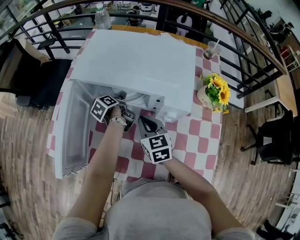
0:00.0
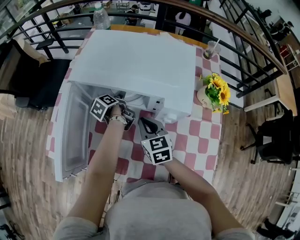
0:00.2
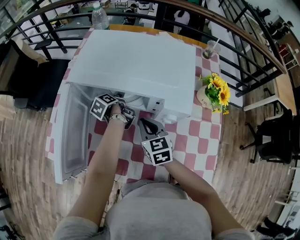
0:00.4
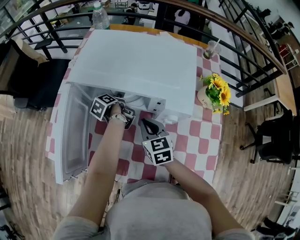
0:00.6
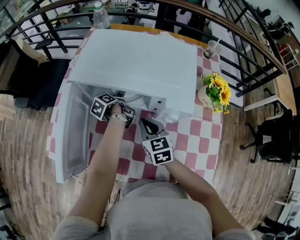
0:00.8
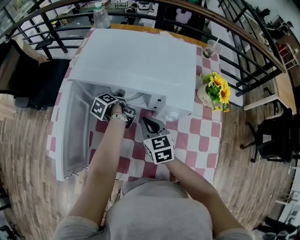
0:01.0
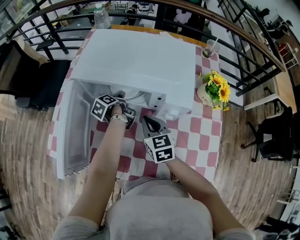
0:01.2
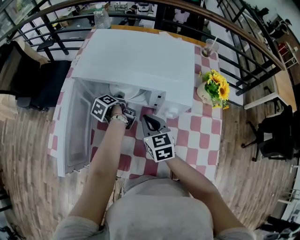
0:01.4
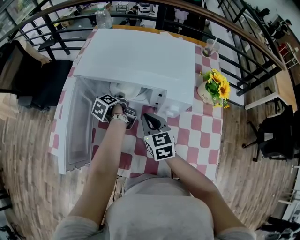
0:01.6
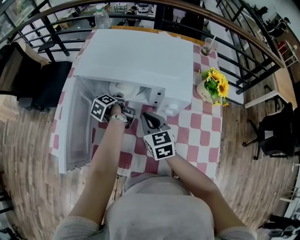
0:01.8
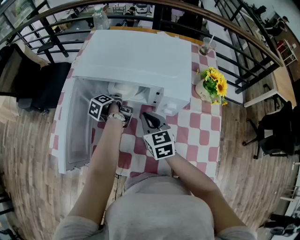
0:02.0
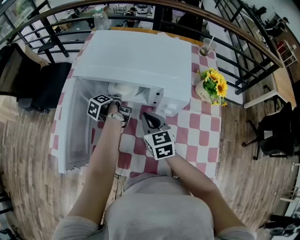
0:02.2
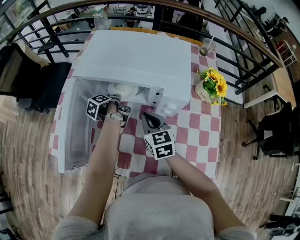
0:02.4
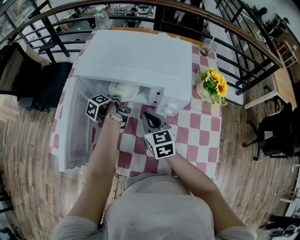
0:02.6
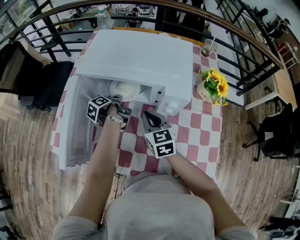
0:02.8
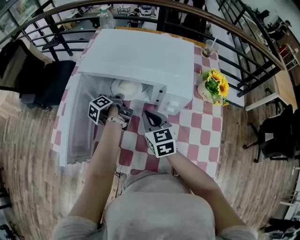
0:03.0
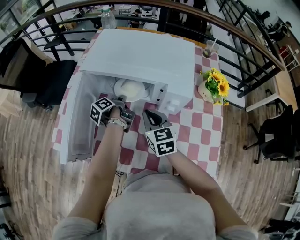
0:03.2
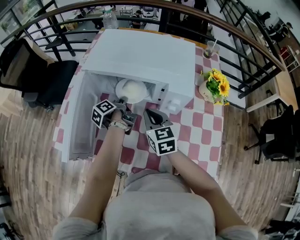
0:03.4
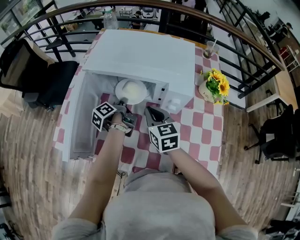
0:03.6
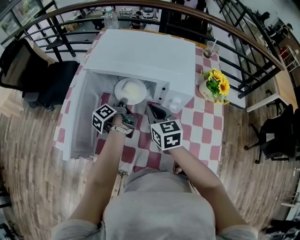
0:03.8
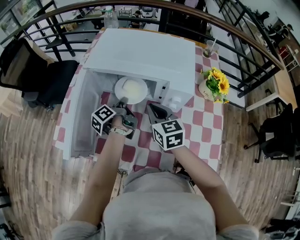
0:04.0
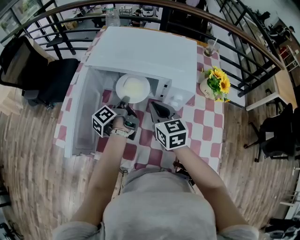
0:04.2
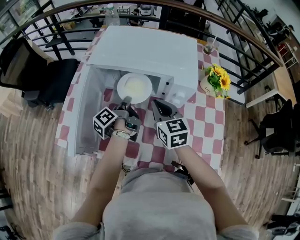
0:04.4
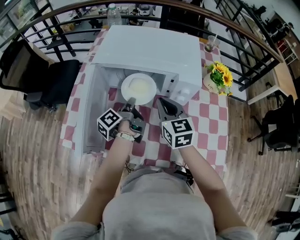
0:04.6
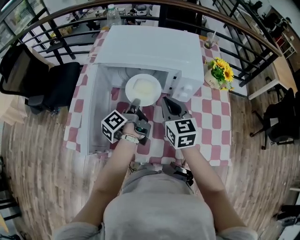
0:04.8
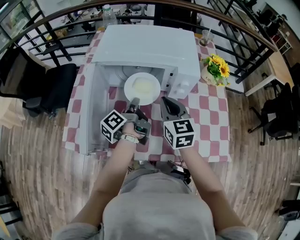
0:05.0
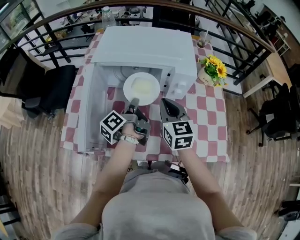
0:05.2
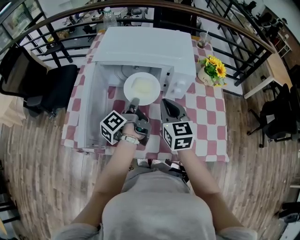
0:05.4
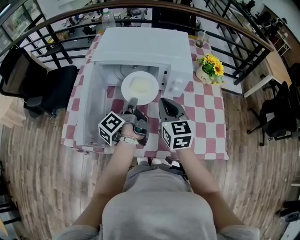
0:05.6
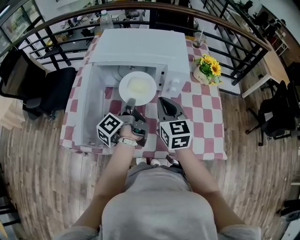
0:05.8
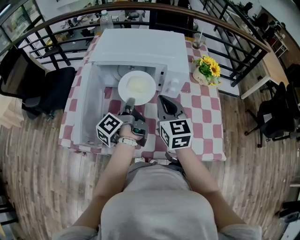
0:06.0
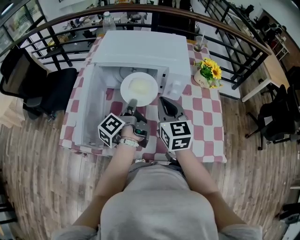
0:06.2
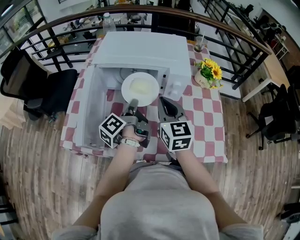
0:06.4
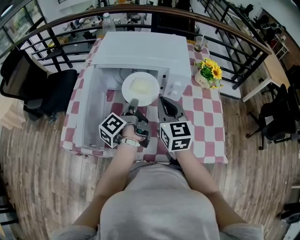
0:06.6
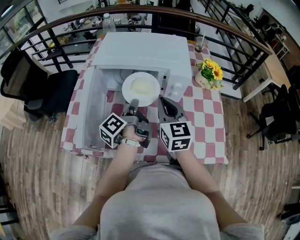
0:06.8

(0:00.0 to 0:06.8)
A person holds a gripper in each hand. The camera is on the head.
0:00.0 - 0:01.4: The grippers make only small movements.
0:01.4 - 0:02.8: The left gripper closes.
0:02.8 - 0:04.0: The left gripper shifts by some 5 cm.
0:04.0 - 0:05.4: The left gripper travels backward and upward by roughly 10 cm, while the right gripper is displaced backward by some 5 cm.
0:05.4 - 0:06.8: The grippers stay close to where they were, moving slightly.

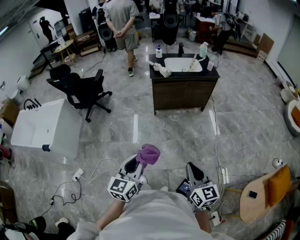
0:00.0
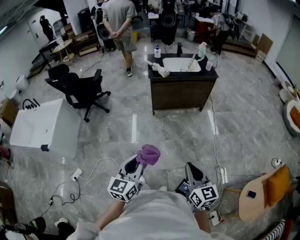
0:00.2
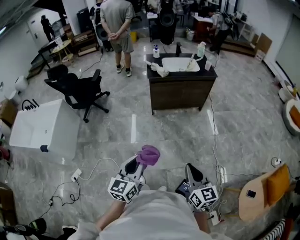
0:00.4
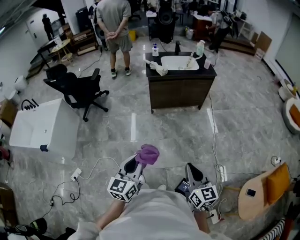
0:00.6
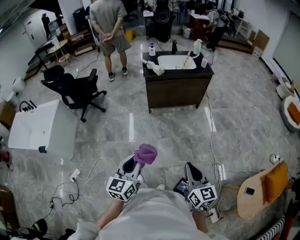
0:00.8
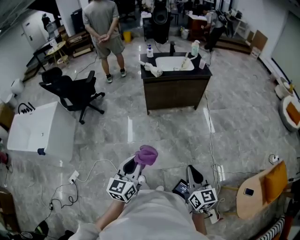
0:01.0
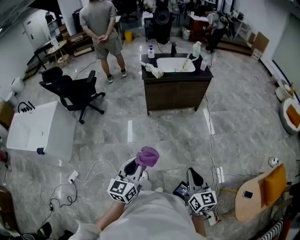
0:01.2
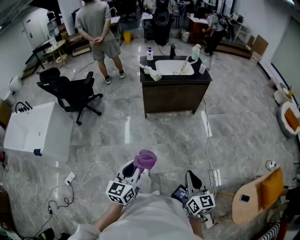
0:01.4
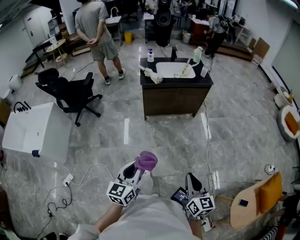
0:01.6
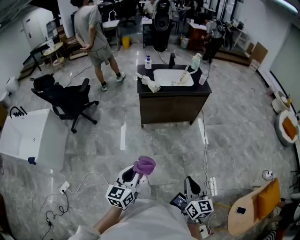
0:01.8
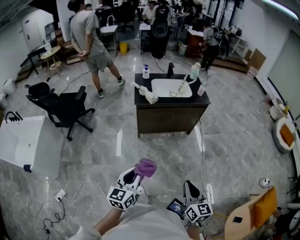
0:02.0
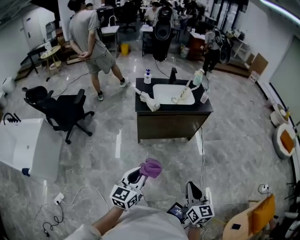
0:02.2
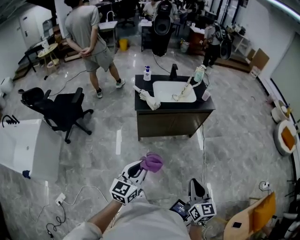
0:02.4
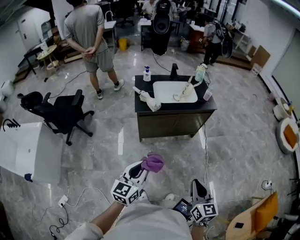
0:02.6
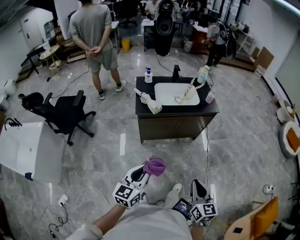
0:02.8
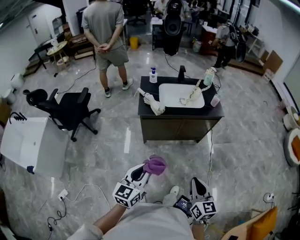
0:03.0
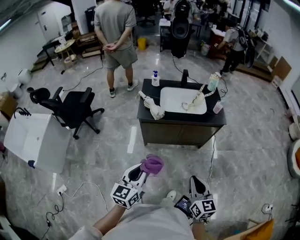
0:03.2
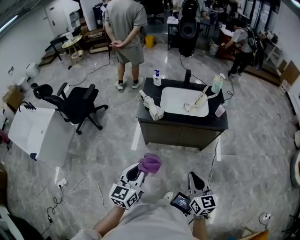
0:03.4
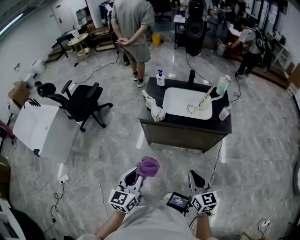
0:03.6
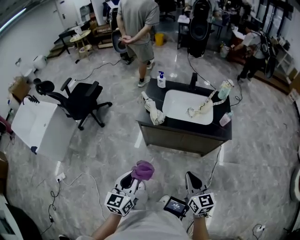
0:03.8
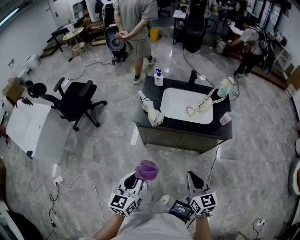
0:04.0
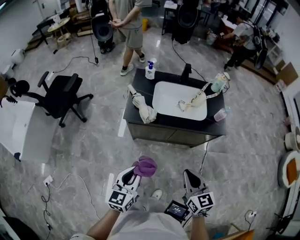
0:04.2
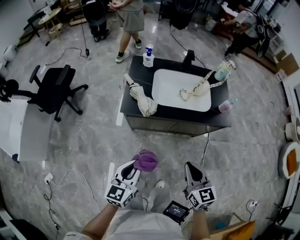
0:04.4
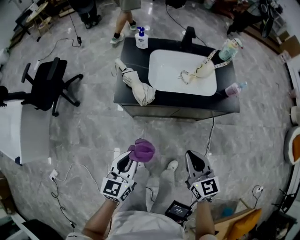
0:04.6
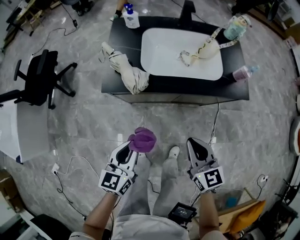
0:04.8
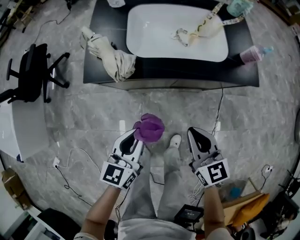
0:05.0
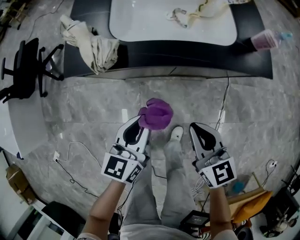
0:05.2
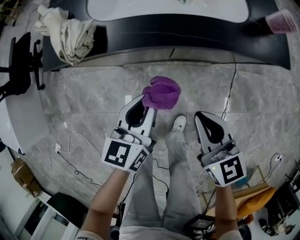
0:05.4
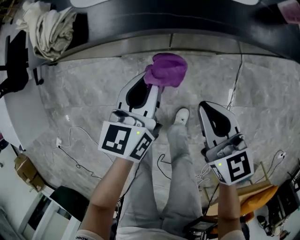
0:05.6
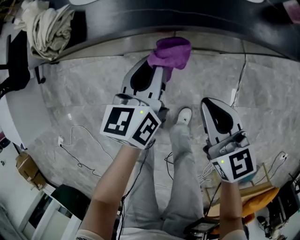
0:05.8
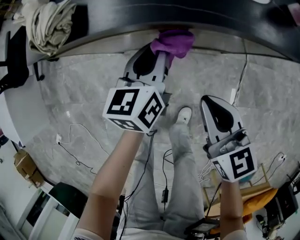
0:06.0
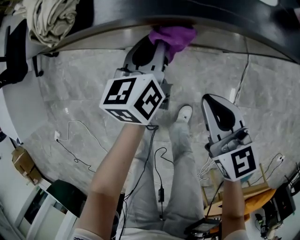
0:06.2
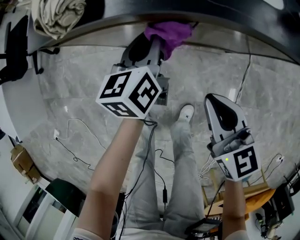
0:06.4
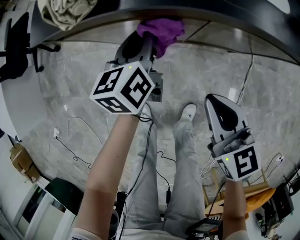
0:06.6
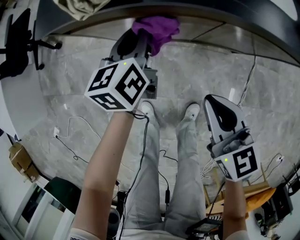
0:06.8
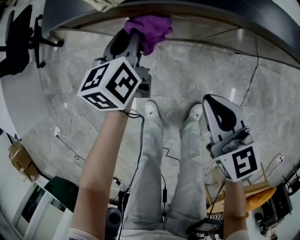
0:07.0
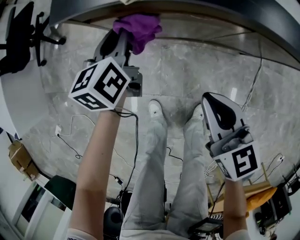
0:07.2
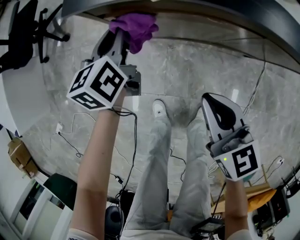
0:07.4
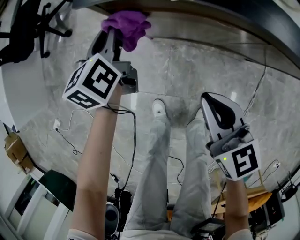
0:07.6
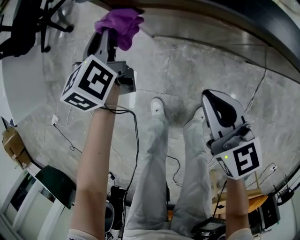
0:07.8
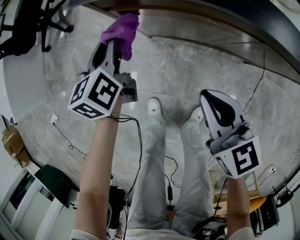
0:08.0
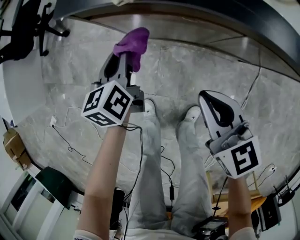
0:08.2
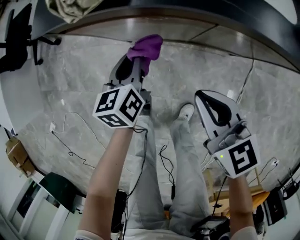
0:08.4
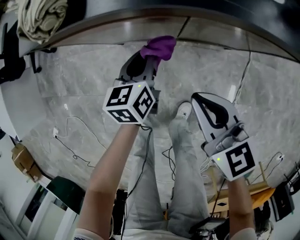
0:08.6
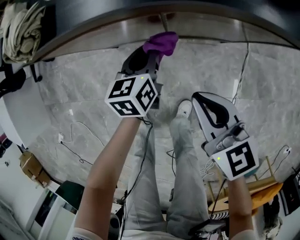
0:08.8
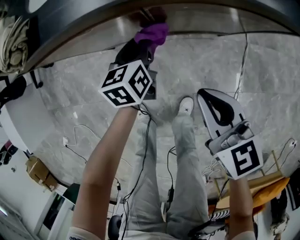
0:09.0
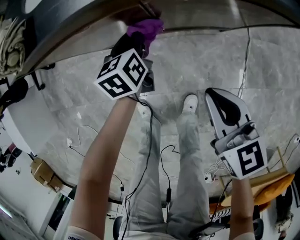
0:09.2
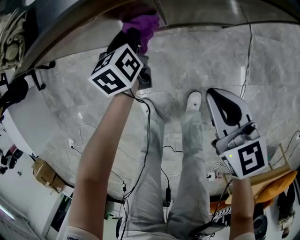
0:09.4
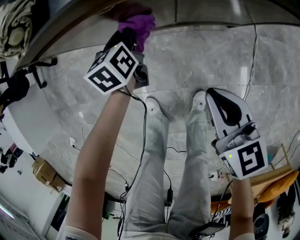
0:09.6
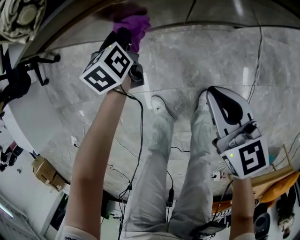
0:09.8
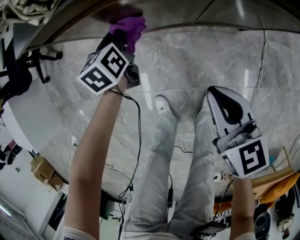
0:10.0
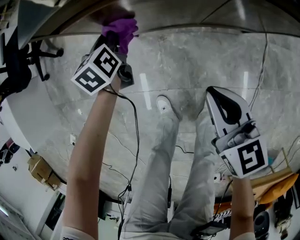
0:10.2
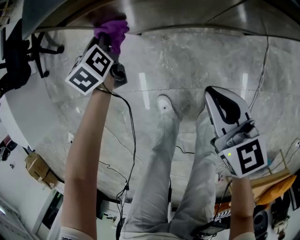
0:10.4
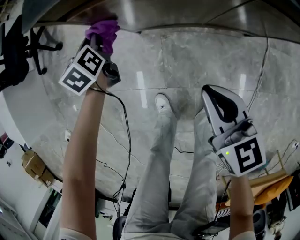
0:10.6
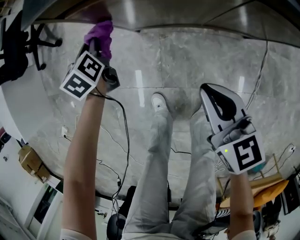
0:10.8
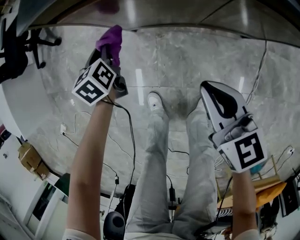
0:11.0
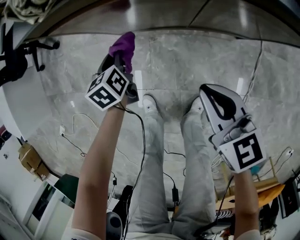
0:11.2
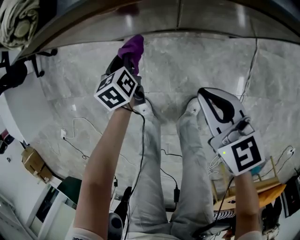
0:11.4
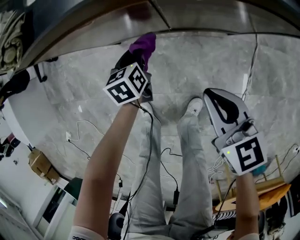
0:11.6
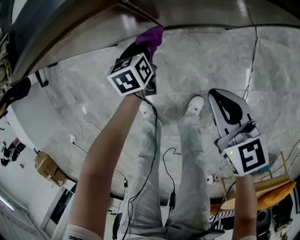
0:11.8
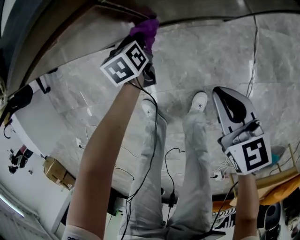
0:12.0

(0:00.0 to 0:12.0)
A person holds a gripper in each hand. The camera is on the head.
0:00.0 - 0:01.6: The left gripper is displaced forward by about 5 cm. Meanwhile the right gripper moves to the right and forward, some 5 cm.
0:01.6 - 0:03.0: The grippers both shift forward by about 35 cm.
0:03.0 - 0:04.4: The right gripper heads forward, covering about 25 cm. The left gripper moves forward and downward, some 20 cm.
0:04.4 - 0:06.0: The left gripper goes roughly 50 cm downward, forward and to the right. The right gripper shifts roughly 35 cm downward.
0:06.0 - 0:07.6: The left gripper is displaced to the left by some 30 cm, and rotates about 20 degrees; the right gripper shifts roughly 20 cm to the left.
0:07.6 - 0:09.0: The left gripper moves to the right and backward, approximately 35 cm, and changes its angle by about 20 degrees. Meanwhile the right gripper shifts approximately 20 cm to the right.
0:09.0 - 0:10.4: The right gripper heads to the left, covering approximately 20 cm. Meanwhile the left gripper goes about 30 cm to the left.
0:10.4 - 0:12.0: The left gripper travels to the right, downward and backward by roughly 35 cm. The right gripper travels to the right and backward by approximately 25 cm.

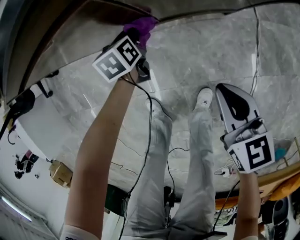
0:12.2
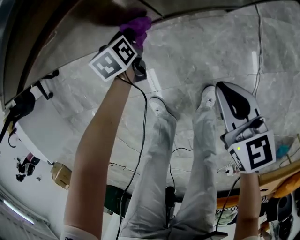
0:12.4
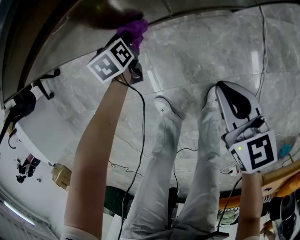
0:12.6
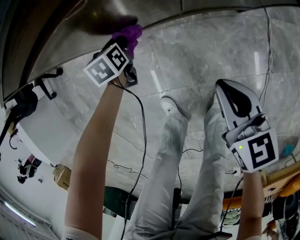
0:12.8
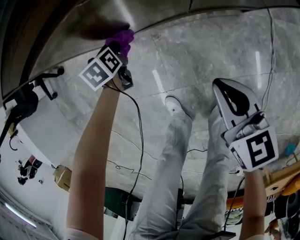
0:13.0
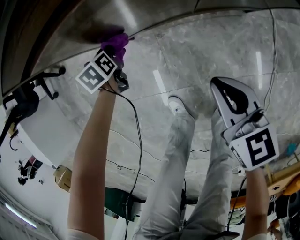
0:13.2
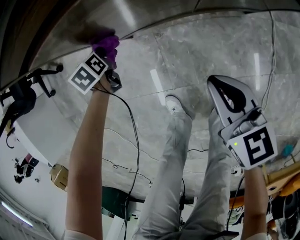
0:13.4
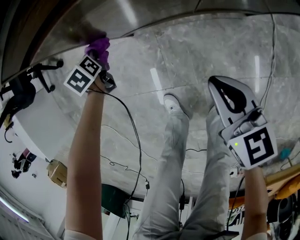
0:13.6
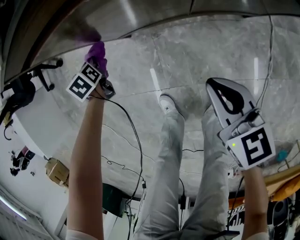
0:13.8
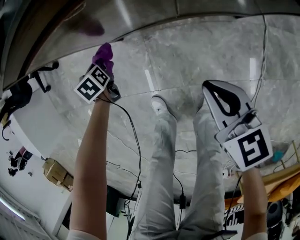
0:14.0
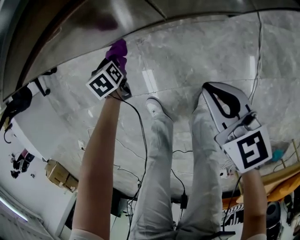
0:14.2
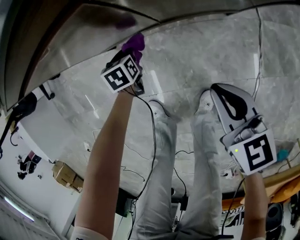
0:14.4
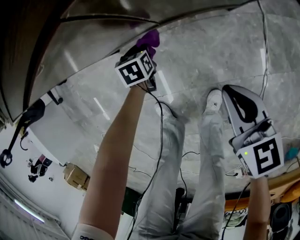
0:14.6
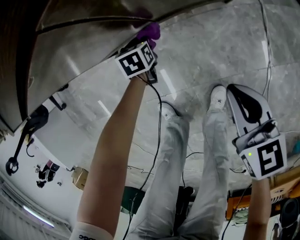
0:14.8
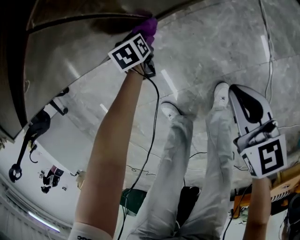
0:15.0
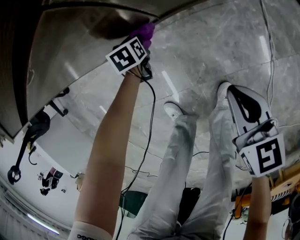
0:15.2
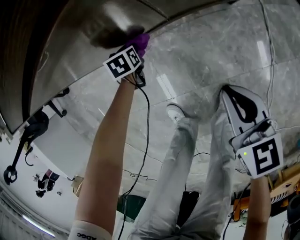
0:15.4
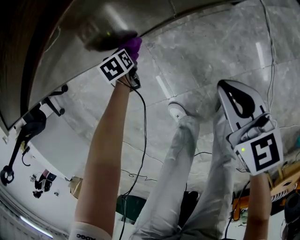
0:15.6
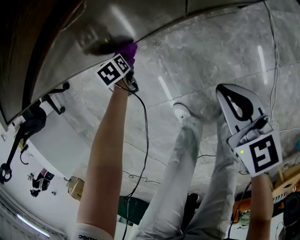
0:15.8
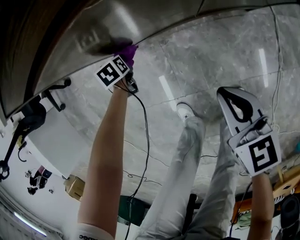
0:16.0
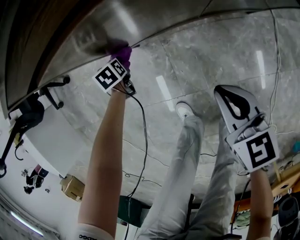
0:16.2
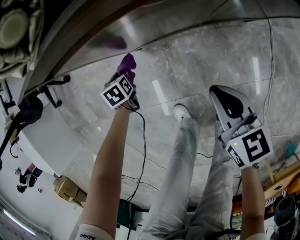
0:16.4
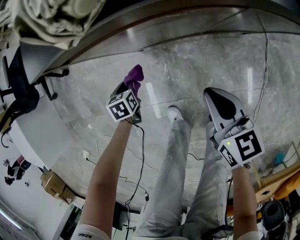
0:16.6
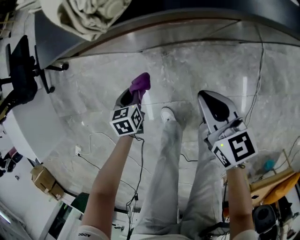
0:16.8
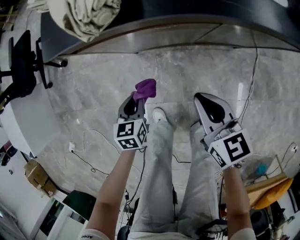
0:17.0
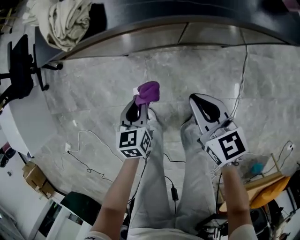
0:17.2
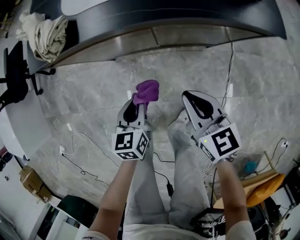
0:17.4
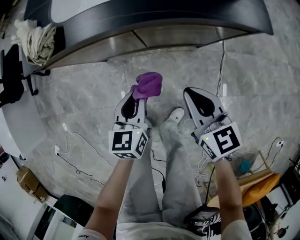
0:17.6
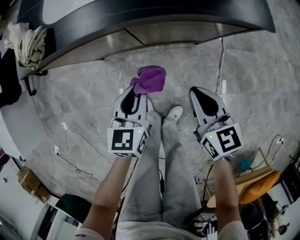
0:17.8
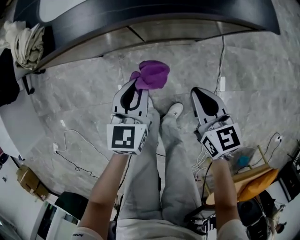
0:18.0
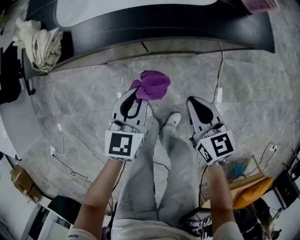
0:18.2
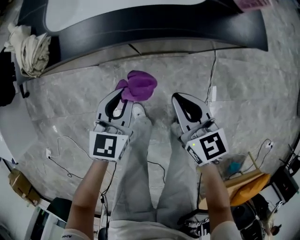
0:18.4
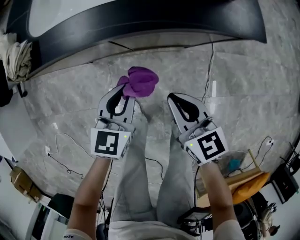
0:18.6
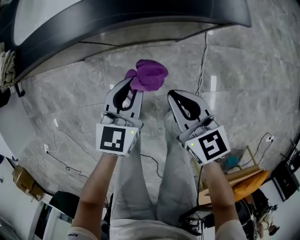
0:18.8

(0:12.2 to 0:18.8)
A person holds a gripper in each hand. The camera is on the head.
0:12.2 - 0:13.8: The right gripper moves to the left and forward, roughly 15 cm; the left gripper moves to the left, about 35 cm, and changes its angle by some 20 degrees.
0:13.8 - 0:15.4: The left gripper shifts by about 25 cm, and turns by approximately 30 degrees.
0:15.4 - 0:17.2: The right gripper moves upward, approximately 15 cm. Meanwhile the left gripper is displaced upward and backward by approximately 35 cm, and changes its angle by roughly 20 degrees.
0:17.2 - 0:18.8: The right gripper swings left and right, roughly 20 cm each way, with 2 reversals. The left gripper travels to the right by roughly 30 cm, and turns by some 30 degrees.
